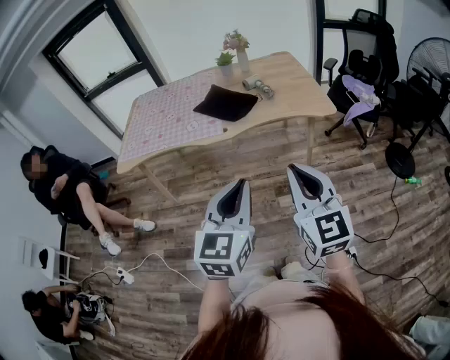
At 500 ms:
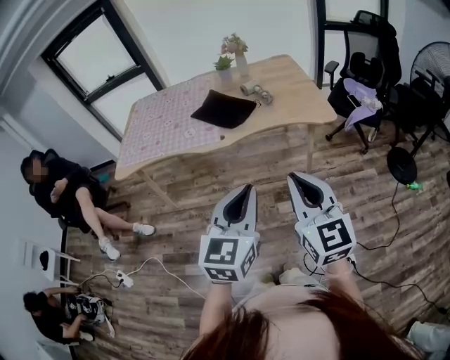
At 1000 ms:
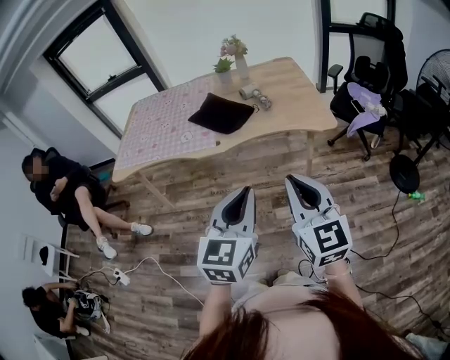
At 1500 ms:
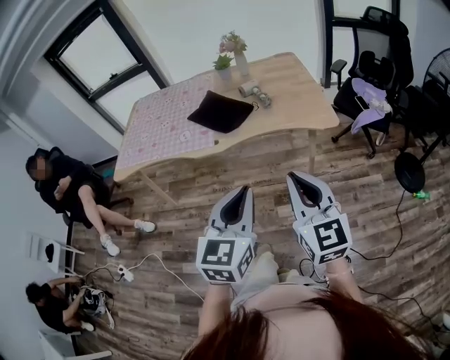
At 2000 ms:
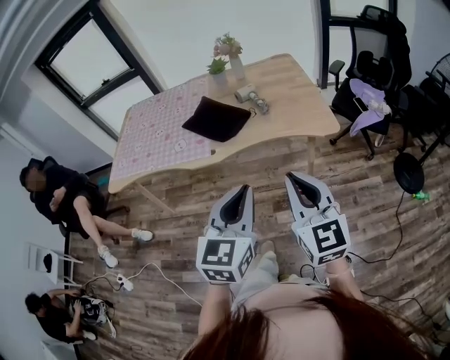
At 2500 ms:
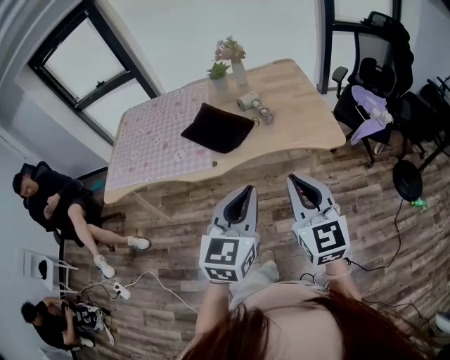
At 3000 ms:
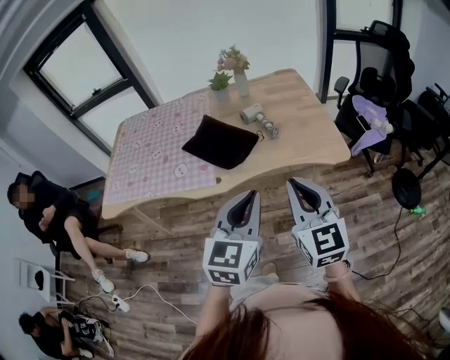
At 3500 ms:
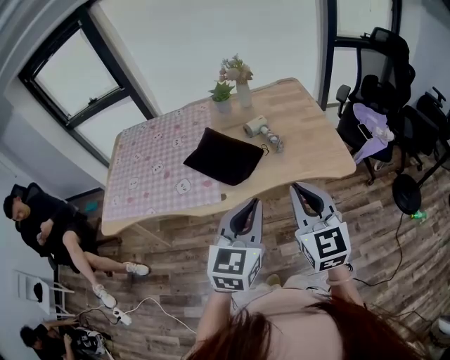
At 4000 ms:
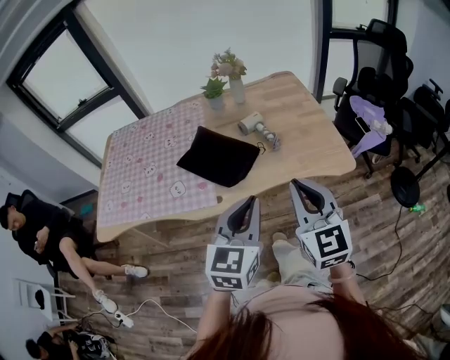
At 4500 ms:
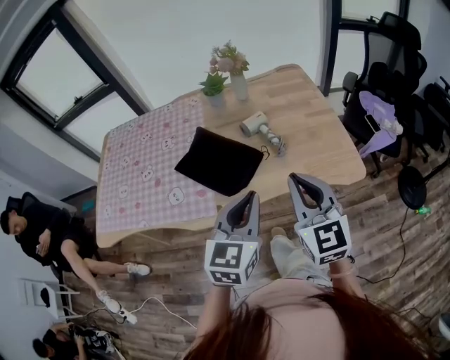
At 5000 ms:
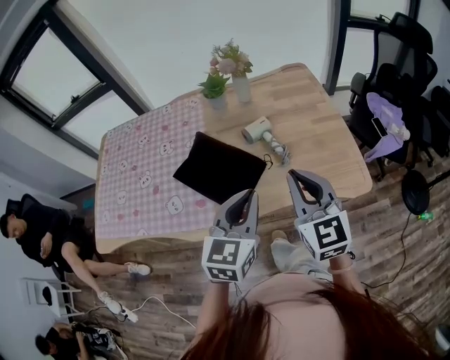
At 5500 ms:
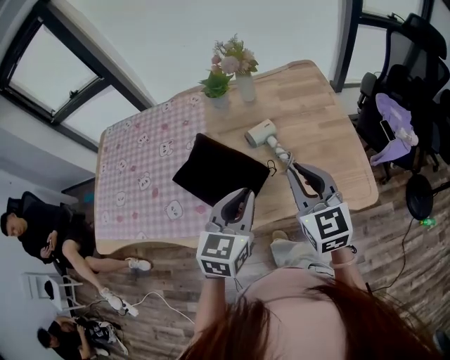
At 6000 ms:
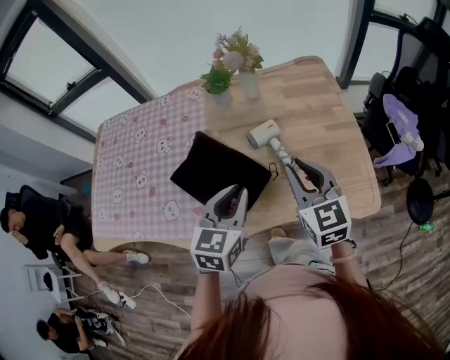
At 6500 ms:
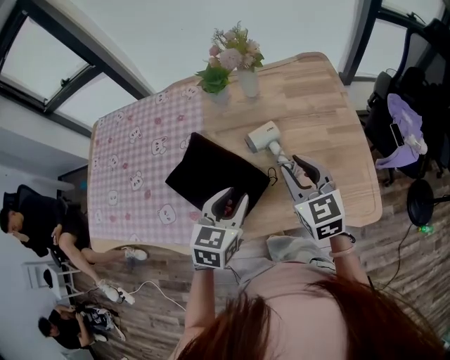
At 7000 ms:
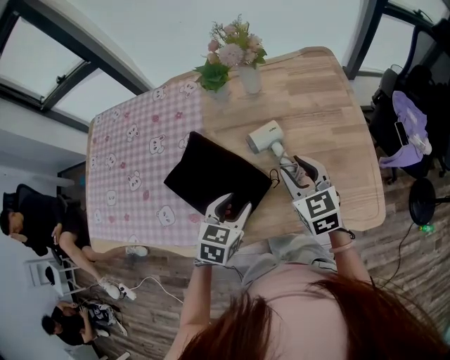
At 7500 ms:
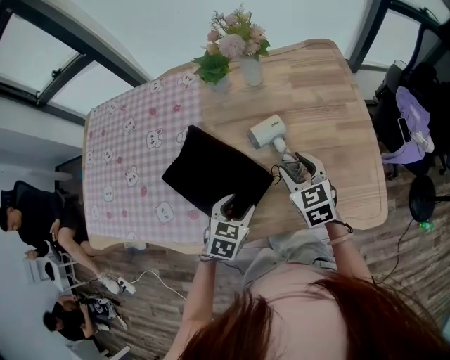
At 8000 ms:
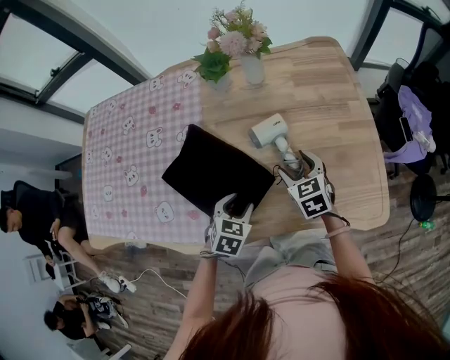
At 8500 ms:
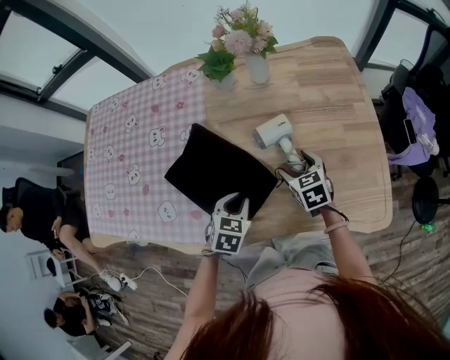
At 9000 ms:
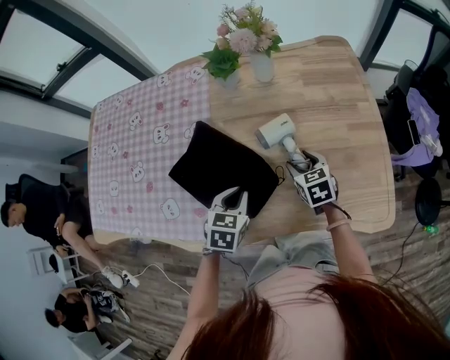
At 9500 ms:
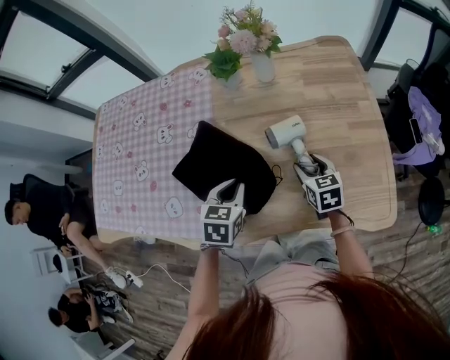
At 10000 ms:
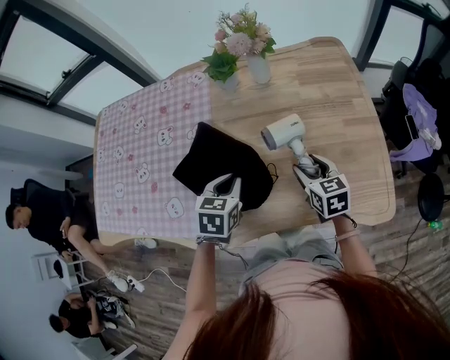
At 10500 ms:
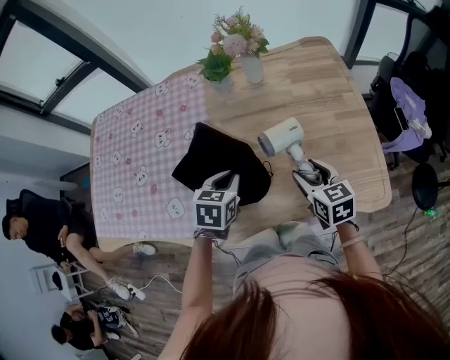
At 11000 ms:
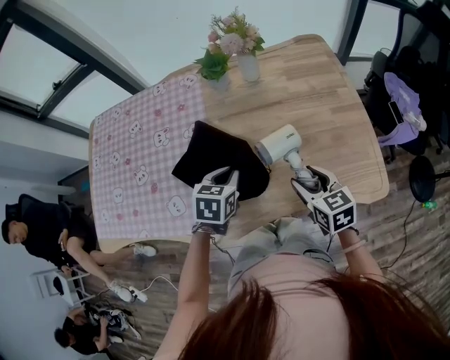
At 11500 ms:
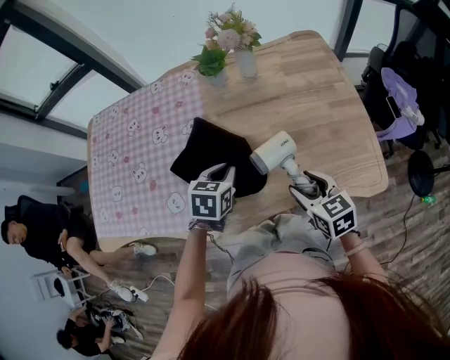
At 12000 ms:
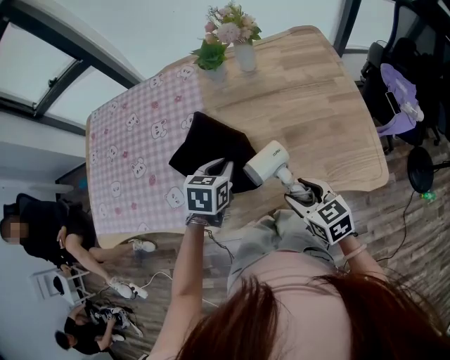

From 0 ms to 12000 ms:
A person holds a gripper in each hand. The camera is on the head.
From 0 ms to 2000 ms: Both grippers travel together forward and to the right, roughly 20 cm.
From 2000 ms to 4000 ms: Both grippers travel together forward, some 20 cm.
From 4000 ms to 6000 ms: Both grippers move forward, roughly 30 cm.
From 6000 ms to 8000 ms: The left gripper is displaced downward by some 20 cm, rotates roughly 30 degrees, and opens its fingers. Meanwhile the right gripper is displaced downward and forward by some 25 cm, changes its angle by approximately 30 degrees, and opens its fingers.
From 8000 ms to 10000 ms: The left gripper is displaced upward and forward by approximately 10 cm, and closes.
From 10000 ms to 12000 ms: The right gripper is displaced backward and to the left by some 15 cm.

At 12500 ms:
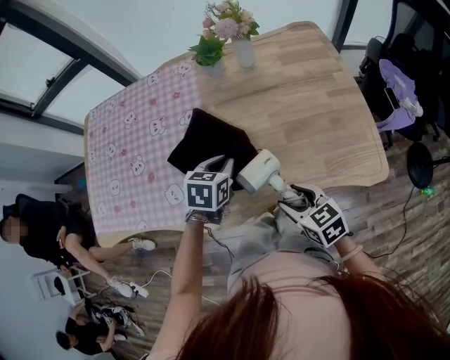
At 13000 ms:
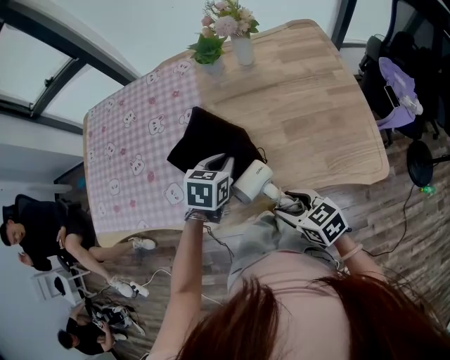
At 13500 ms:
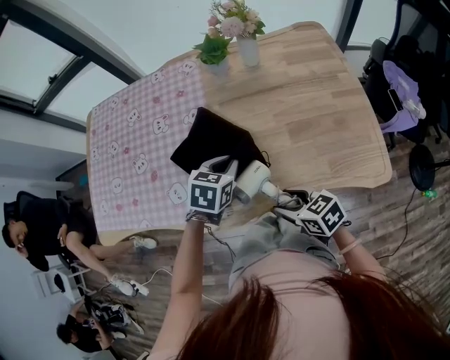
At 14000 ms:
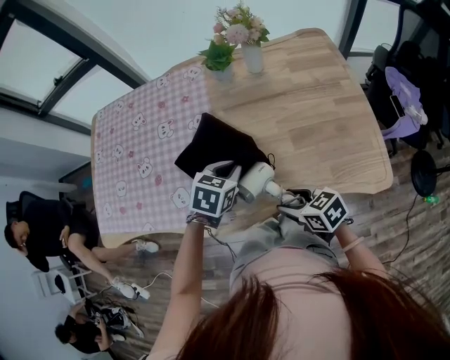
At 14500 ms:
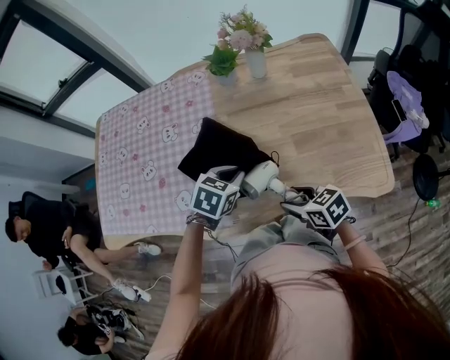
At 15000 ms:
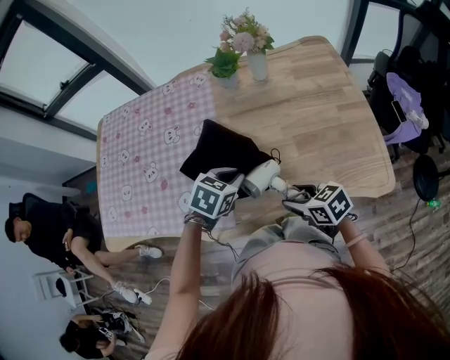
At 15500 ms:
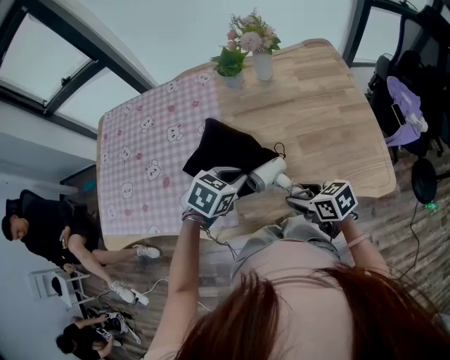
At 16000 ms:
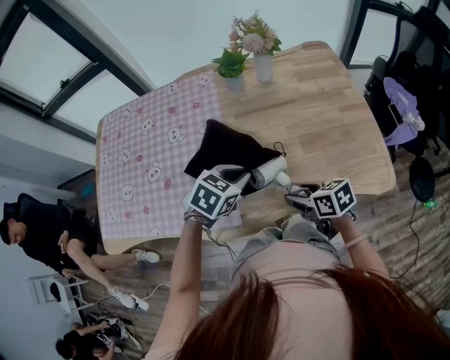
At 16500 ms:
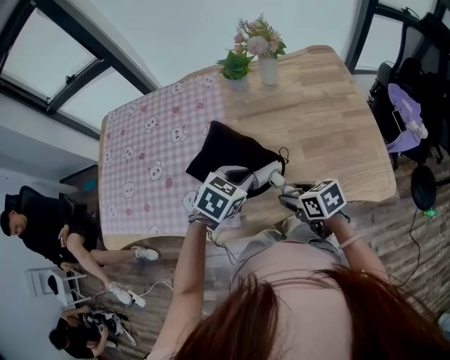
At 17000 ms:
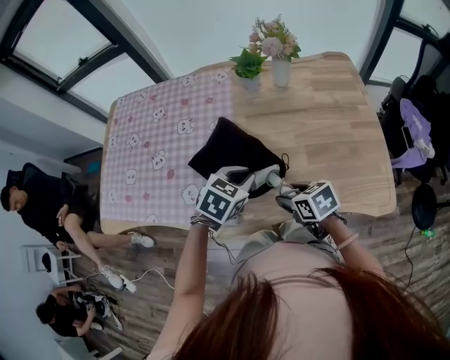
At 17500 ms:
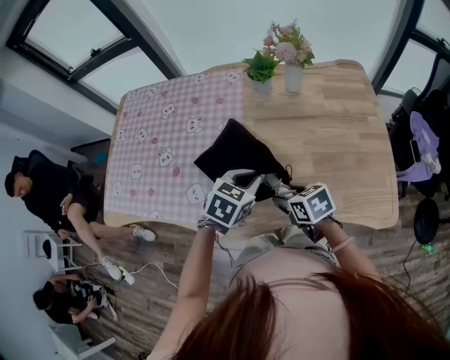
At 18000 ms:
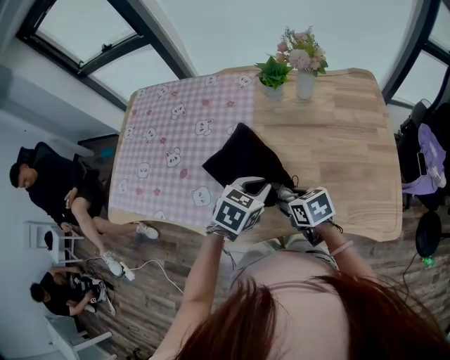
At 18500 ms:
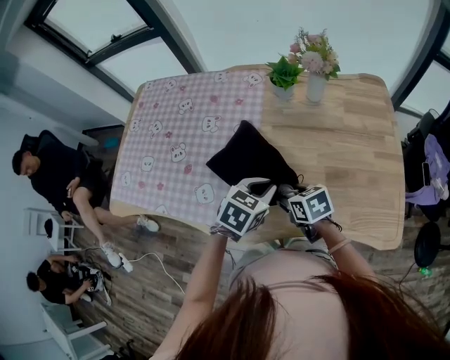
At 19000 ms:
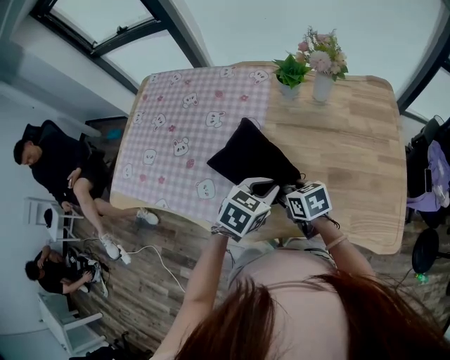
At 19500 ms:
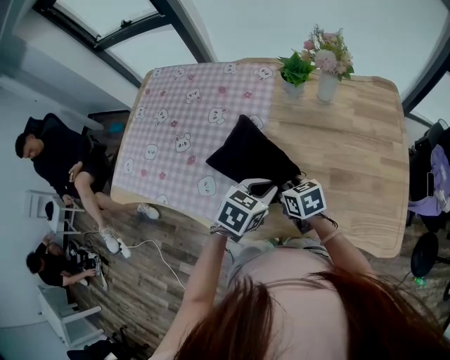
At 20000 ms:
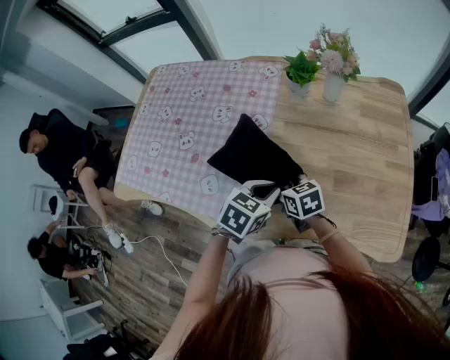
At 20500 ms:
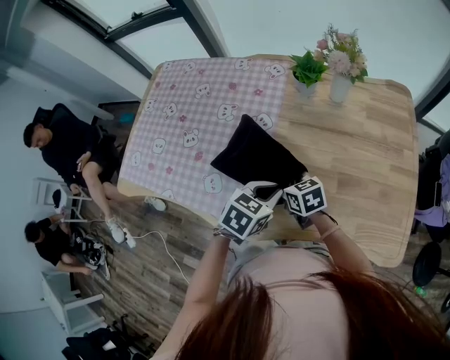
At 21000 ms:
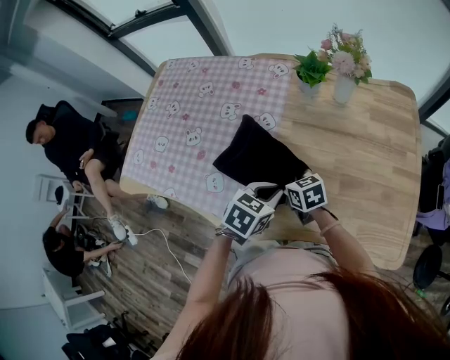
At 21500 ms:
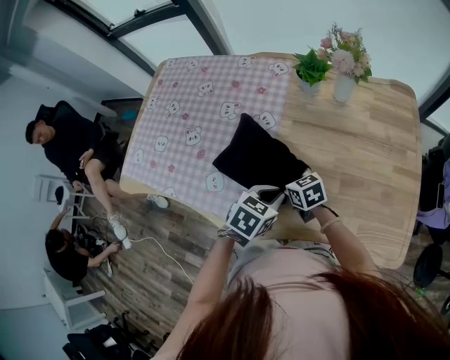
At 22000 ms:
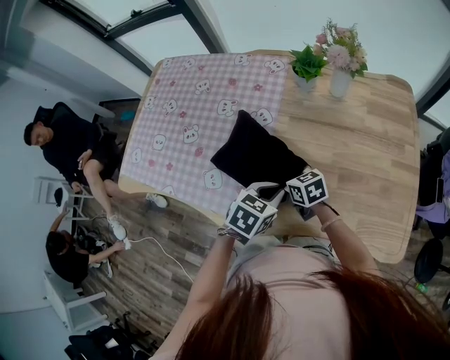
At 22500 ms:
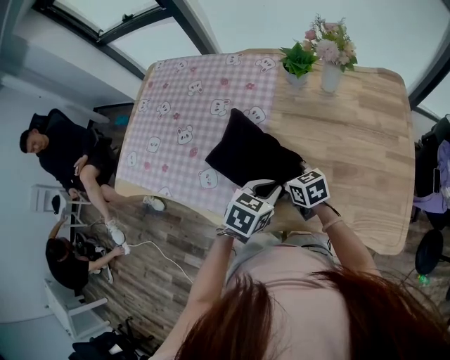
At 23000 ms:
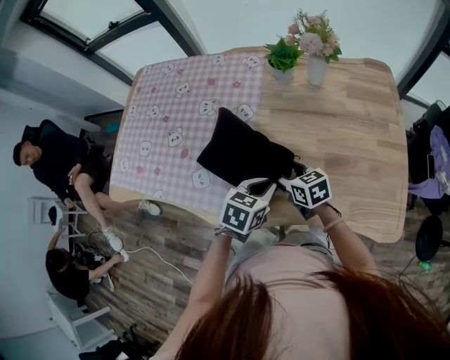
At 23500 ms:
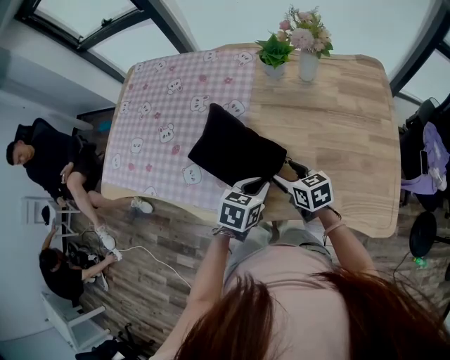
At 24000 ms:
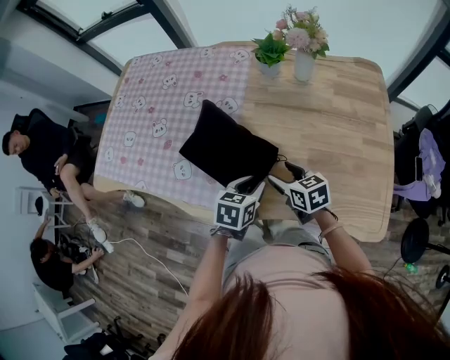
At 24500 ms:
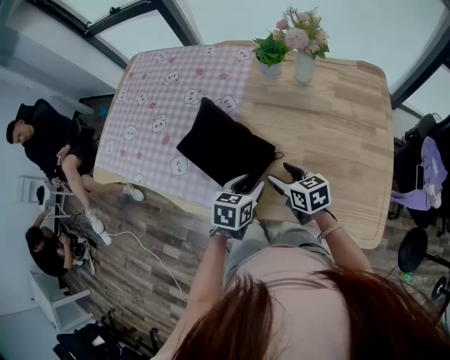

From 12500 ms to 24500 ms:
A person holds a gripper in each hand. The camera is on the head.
From 12500 ms to 14500 ms: The grippers move only a little.
From 14500 ms to 16500 ms: The grippers stay close to where they were, moving slightly.
From 16500 ms to 18500 ms: The right gripper is displaced forward by approximately 10 cm.
From 18500 ms to 20500 ms: The right gripper shifts roughly 5 cm forward.
From 20500 ms to 22500 ms: The grippers make only small movements.
From 22500 ms to 24500 ms: The left gripper shifts by about 5 cm, and opens up. The right gripper shifts approximately 10 cm to the right and backward.

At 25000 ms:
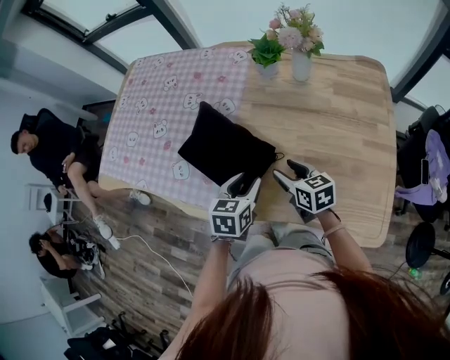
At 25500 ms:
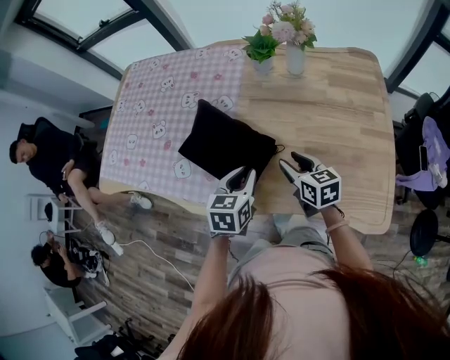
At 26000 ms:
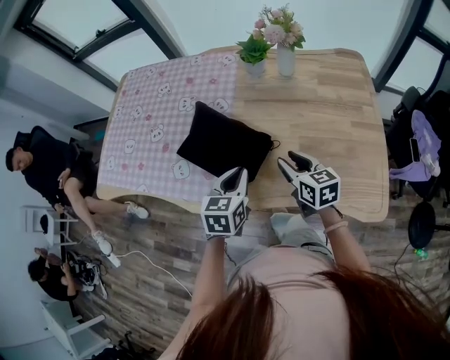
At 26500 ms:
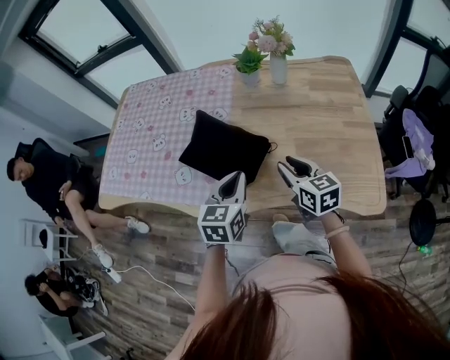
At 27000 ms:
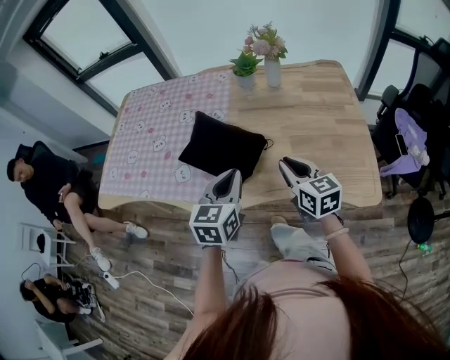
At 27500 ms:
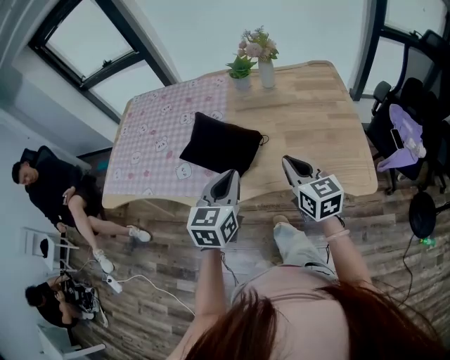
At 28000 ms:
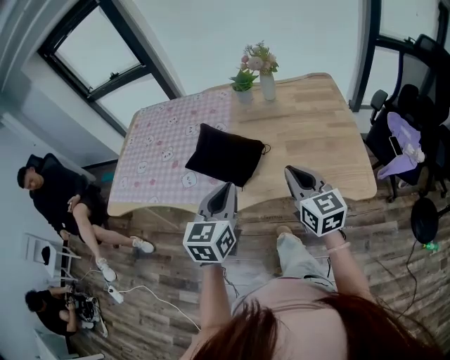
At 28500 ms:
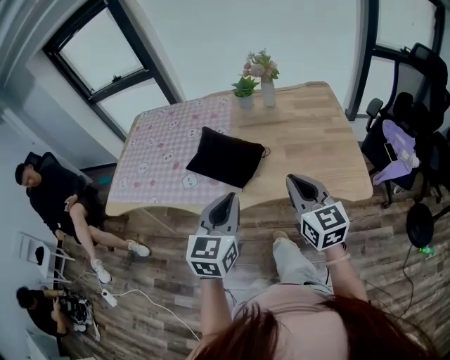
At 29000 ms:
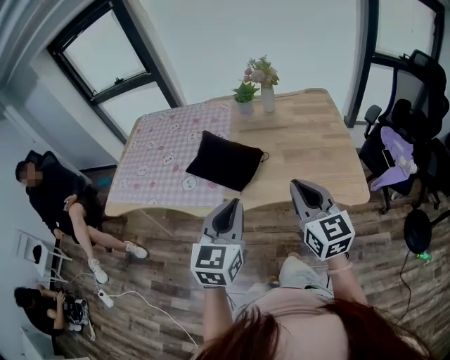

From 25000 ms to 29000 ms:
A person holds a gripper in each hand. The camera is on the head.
From 25000 ms to 27000 ms: The two grippers go roughly 15 cm upward and backward. The right gripper swivels roughly 20 degrees, and closes, while the left gripper rotates approximately 20 degrees, and closes.
From 27000 ms to 29000 ms: Both grippers travel together backward and upward, approximately 20 cm. The right gripper rotates some 20 degrees.
